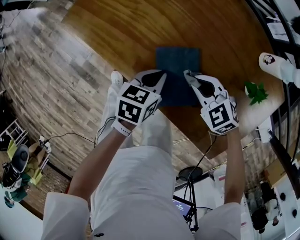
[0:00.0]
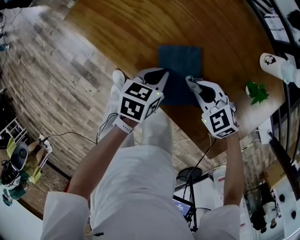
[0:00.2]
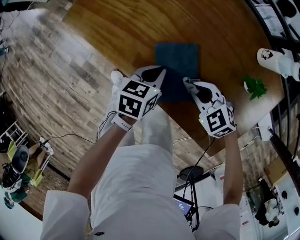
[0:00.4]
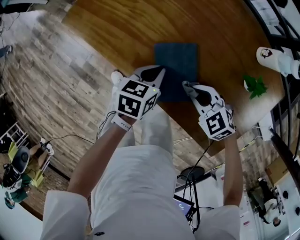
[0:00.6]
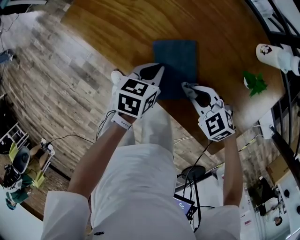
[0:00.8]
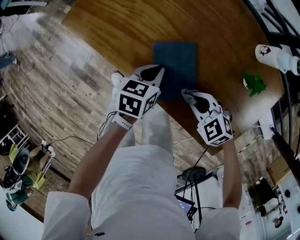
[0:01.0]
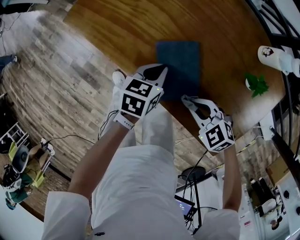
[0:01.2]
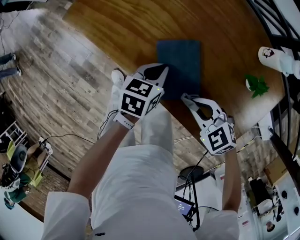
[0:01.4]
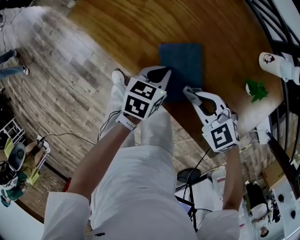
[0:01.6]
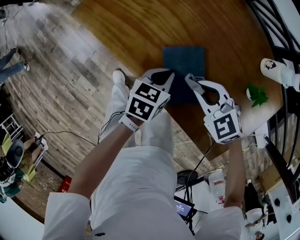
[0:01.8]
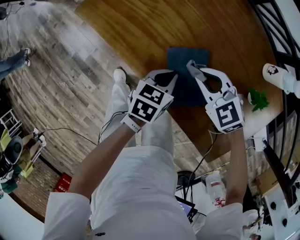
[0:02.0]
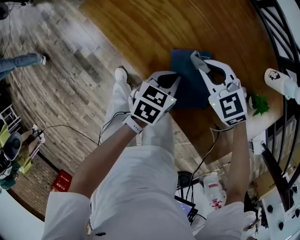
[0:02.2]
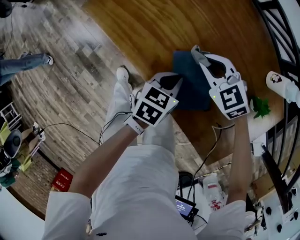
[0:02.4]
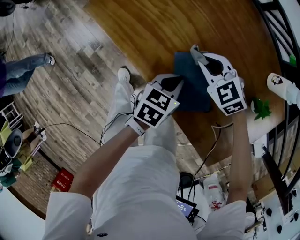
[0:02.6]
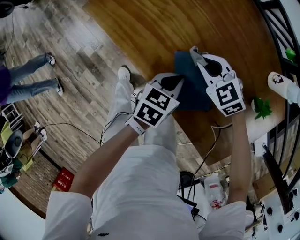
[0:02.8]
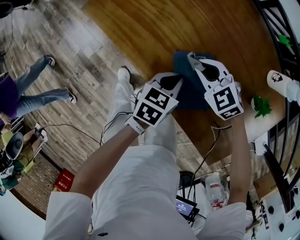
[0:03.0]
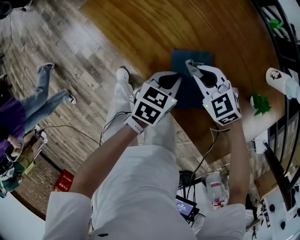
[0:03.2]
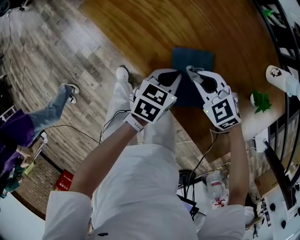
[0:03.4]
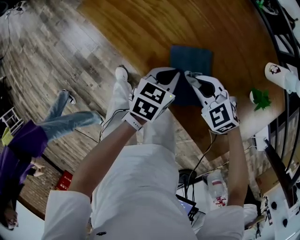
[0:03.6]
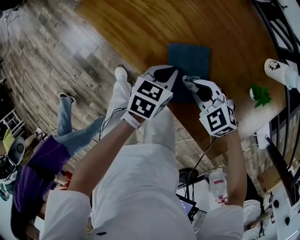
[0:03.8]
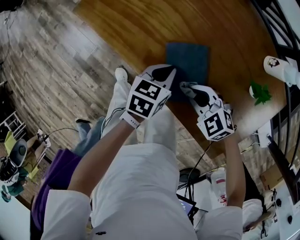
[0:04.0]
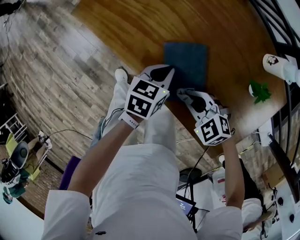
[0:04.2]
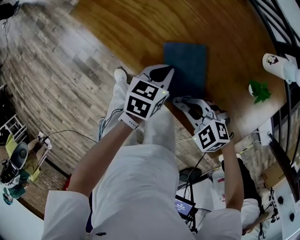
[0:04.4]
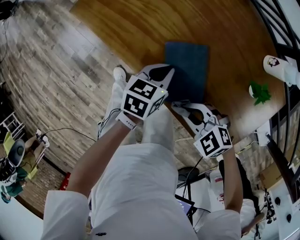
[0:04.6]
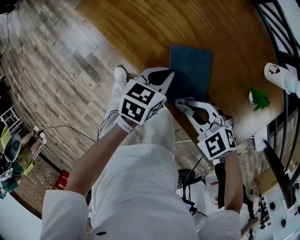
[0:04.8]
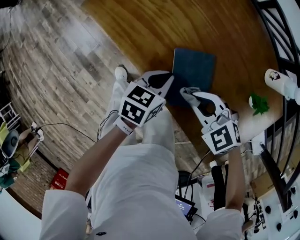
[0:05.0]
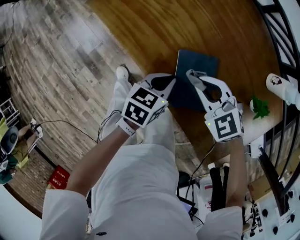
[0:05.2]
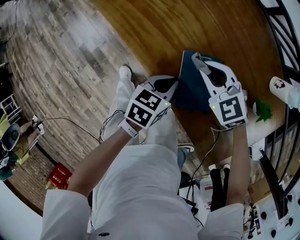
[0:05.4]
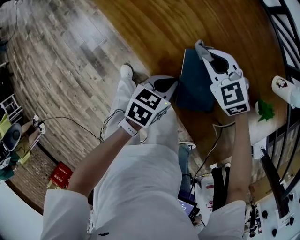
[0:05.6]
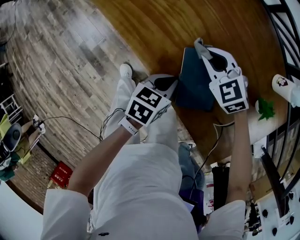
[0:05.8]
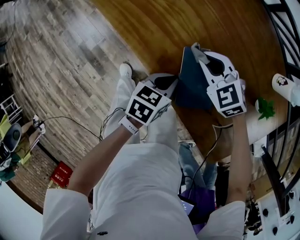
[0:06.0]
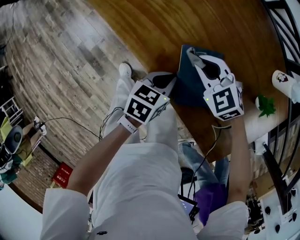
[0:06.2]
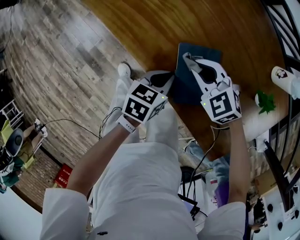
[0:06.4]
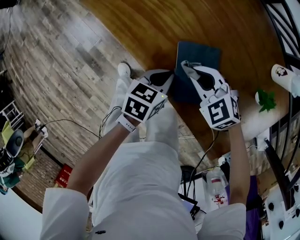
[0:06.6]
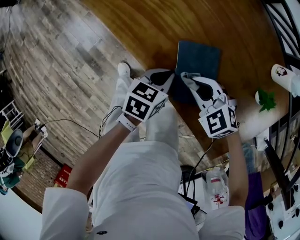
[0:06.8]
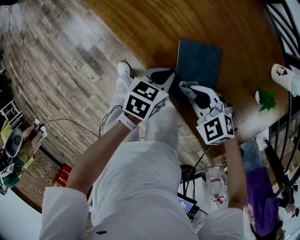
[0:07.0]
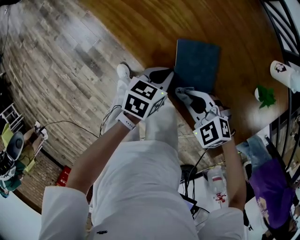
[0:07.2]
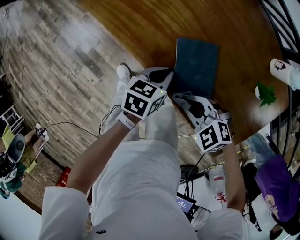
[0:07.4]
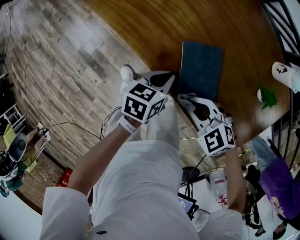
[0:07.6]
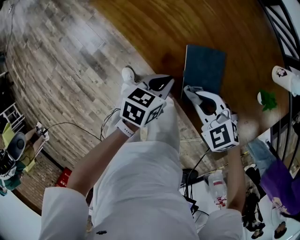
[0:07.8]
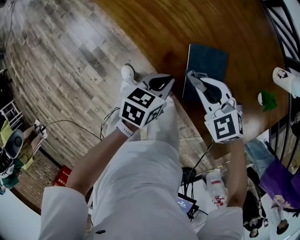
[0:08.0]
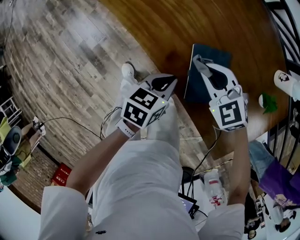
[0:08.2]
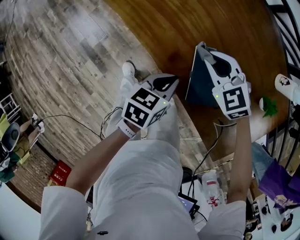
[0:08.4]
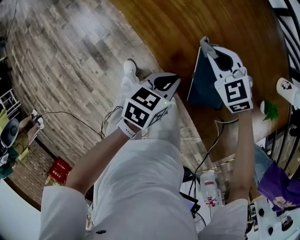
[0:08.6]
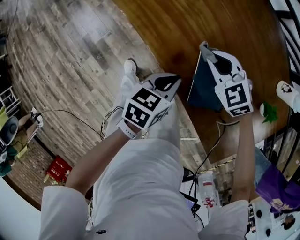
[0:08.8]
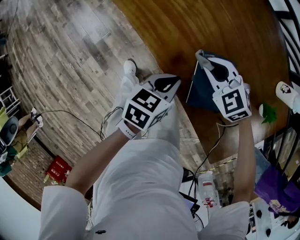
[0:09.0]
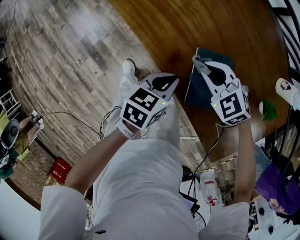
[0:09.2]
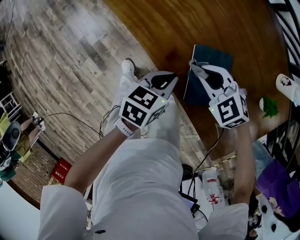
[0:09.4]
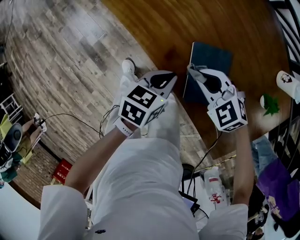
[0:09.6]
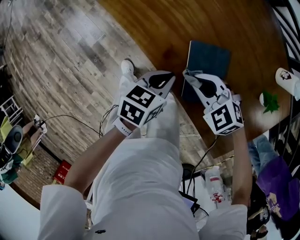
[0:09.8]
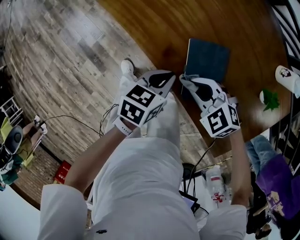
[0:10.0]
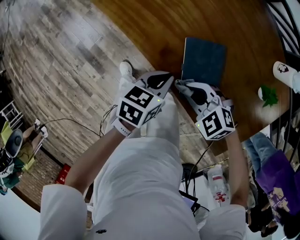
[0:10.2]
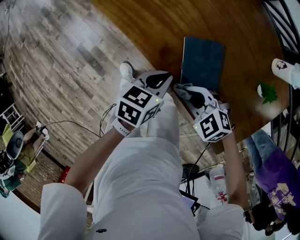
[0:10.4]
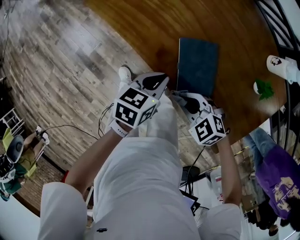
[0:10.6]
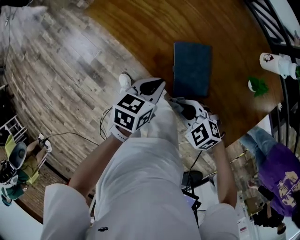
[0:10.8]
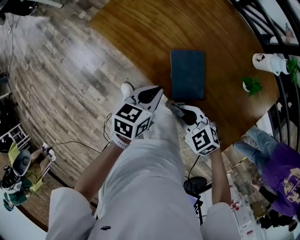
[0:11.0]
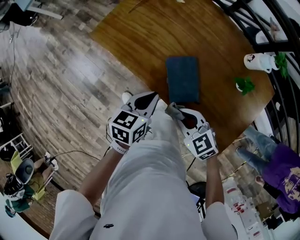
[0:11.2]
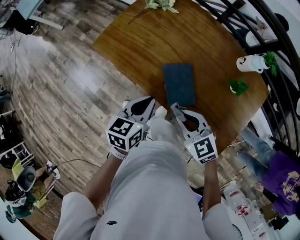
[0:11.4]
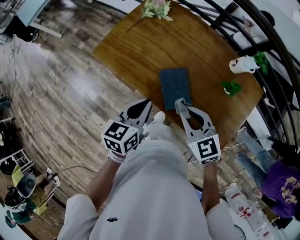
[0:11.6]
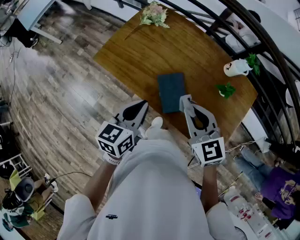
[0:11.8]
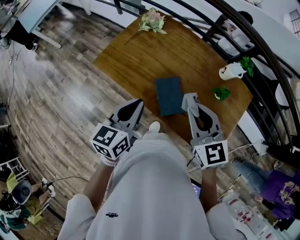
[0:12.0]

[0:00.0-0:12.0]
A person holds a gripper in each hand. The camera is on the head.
0:00.0 to 0:01.6: The right gripper travels backward by approximately 5 cm.
0:01.6 to 0:03.0: The right gripper shifts roughly 15 cm forward.
0:03.0 to 0:04.4: The right gripper moves backward, approximately 20 cm.
0:04.4 to 0:06.0: The right gripper ends up roughly 20 cm from where it was.
0:06.0 to 0:07.6: The right gripper ends up some 20 cm from where it was.
0:07.6 to 0:09.0: The right gripper is displaced forward by about 15 cm.
0:09.0 to 0:10.4: The right gripper changes place by some 15 cm.
0:10.4 to 0:12.0: The two grippers go about 25 cm upward. The left gripper rotates approximately 30 degrees. Meanwhile the right gripper tilts its fingers approximately 30 degrees upward.

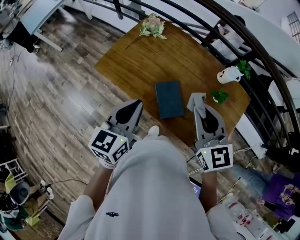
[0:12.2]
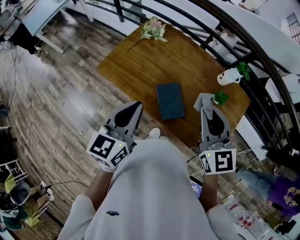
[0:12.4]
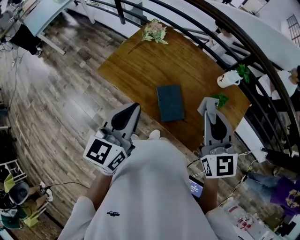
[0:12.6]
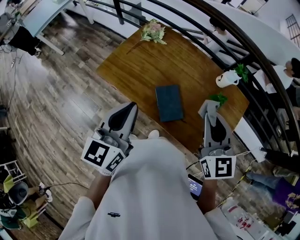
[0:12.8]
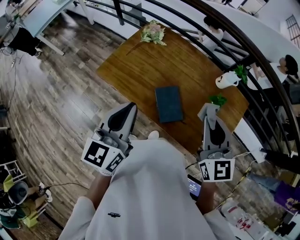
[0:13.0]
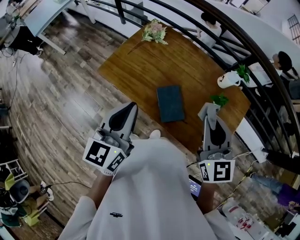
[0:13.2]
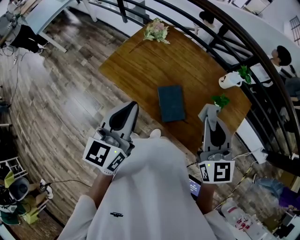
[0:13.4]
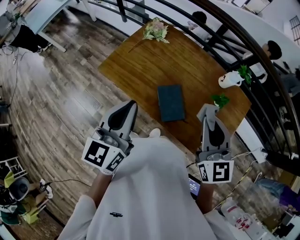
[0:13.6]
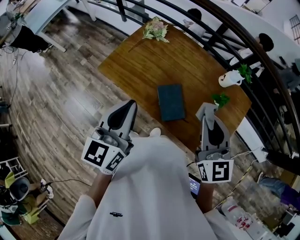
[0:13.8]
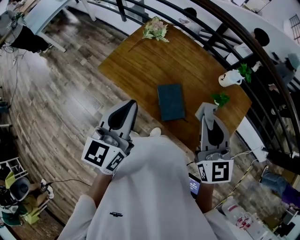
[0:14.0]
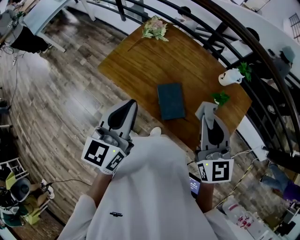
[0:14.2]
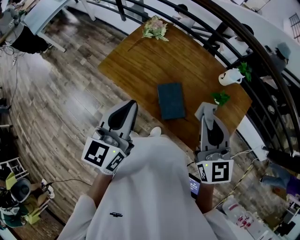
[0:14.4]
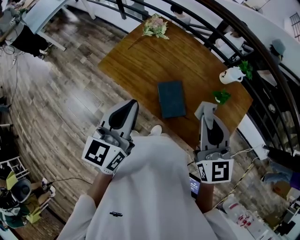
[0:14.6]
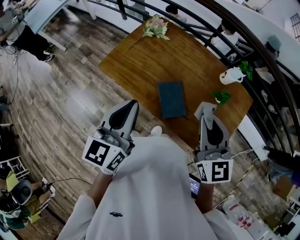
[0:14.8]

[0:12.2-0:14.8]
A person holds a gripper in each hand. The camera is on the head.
0:12.2 to 0:13.4: The left gripper moves upward, about 5 cm.
0:13.4 to 0:14.8: Both grippers stay about where they are.

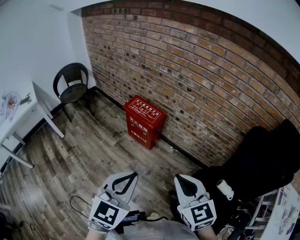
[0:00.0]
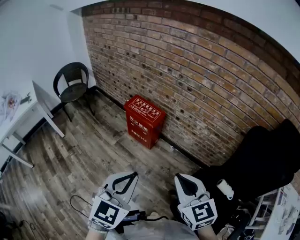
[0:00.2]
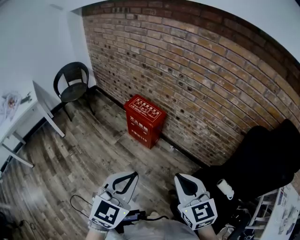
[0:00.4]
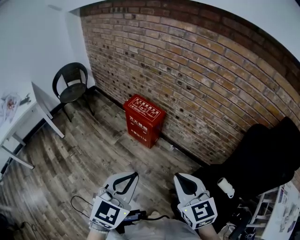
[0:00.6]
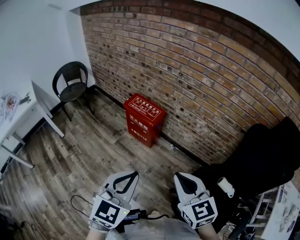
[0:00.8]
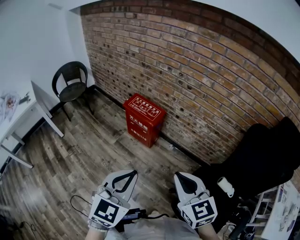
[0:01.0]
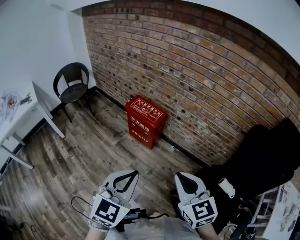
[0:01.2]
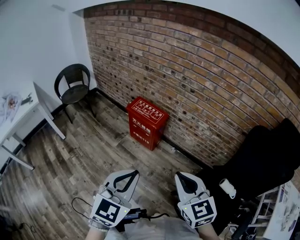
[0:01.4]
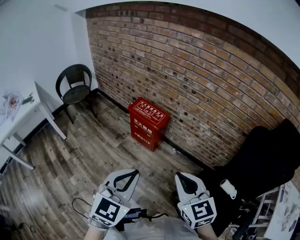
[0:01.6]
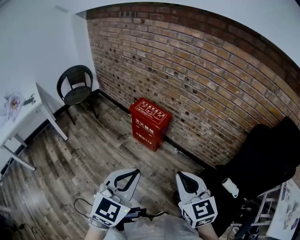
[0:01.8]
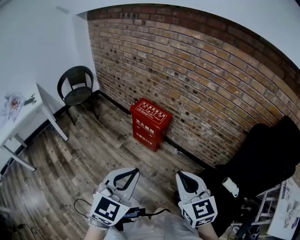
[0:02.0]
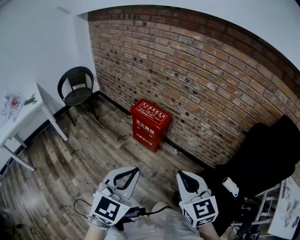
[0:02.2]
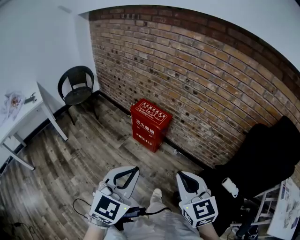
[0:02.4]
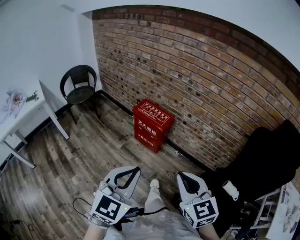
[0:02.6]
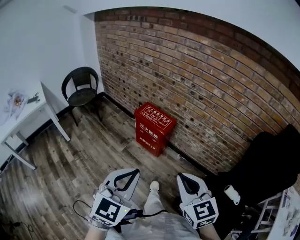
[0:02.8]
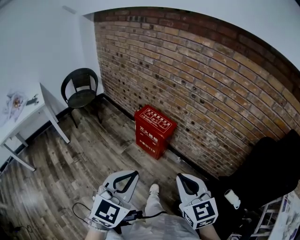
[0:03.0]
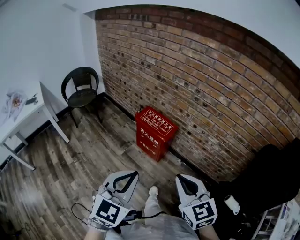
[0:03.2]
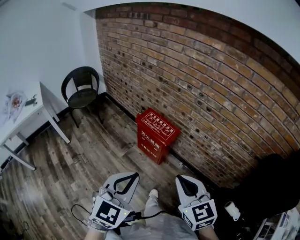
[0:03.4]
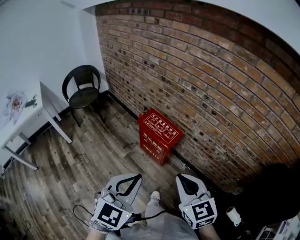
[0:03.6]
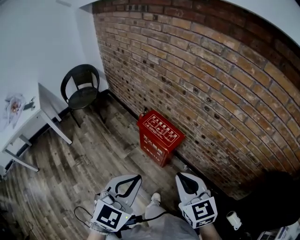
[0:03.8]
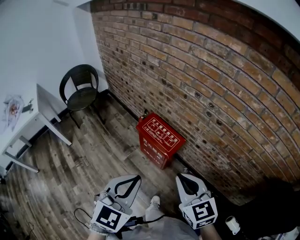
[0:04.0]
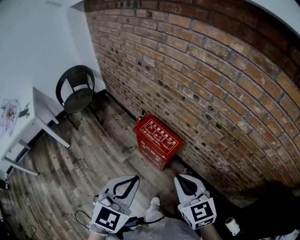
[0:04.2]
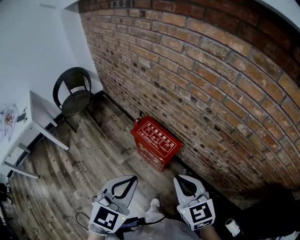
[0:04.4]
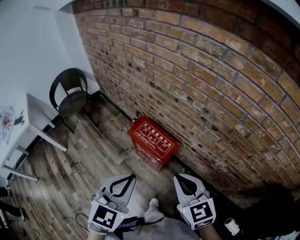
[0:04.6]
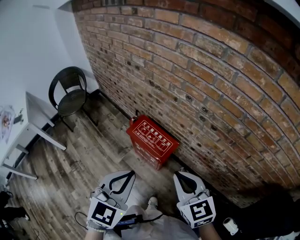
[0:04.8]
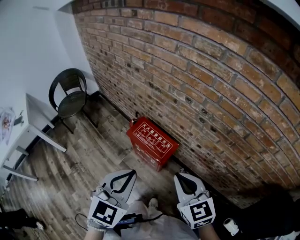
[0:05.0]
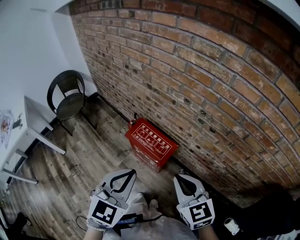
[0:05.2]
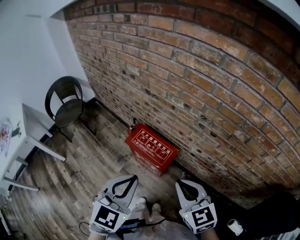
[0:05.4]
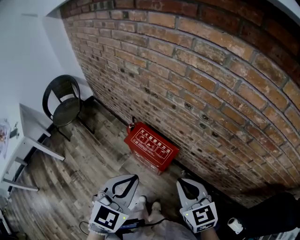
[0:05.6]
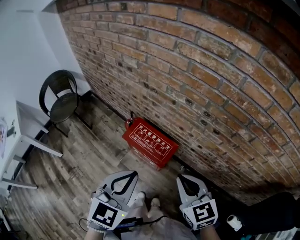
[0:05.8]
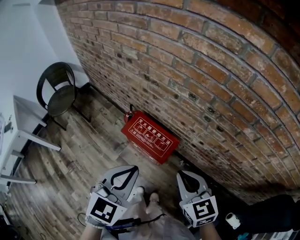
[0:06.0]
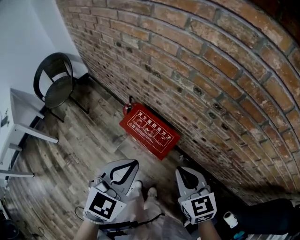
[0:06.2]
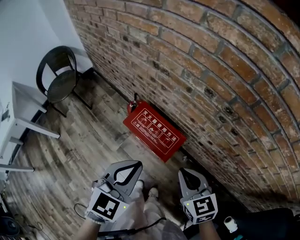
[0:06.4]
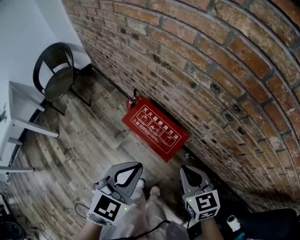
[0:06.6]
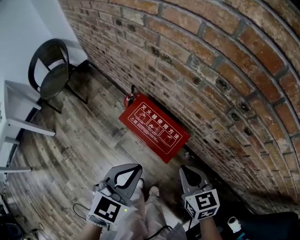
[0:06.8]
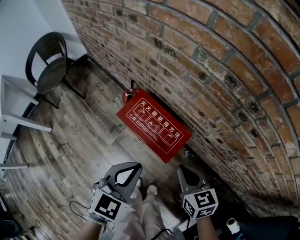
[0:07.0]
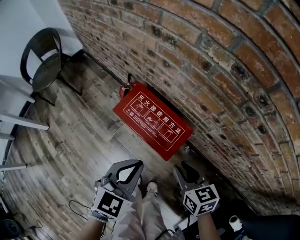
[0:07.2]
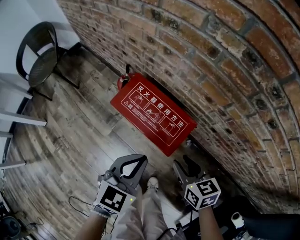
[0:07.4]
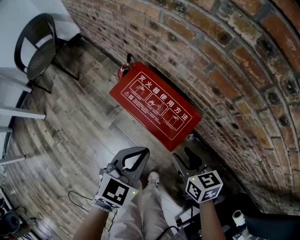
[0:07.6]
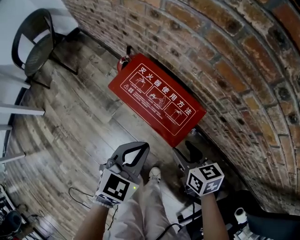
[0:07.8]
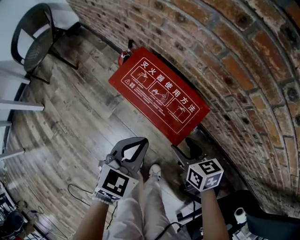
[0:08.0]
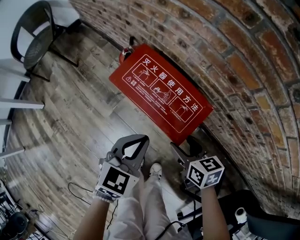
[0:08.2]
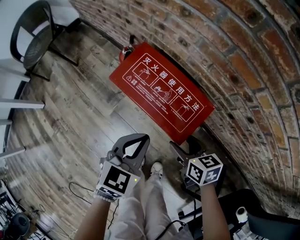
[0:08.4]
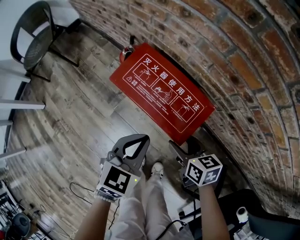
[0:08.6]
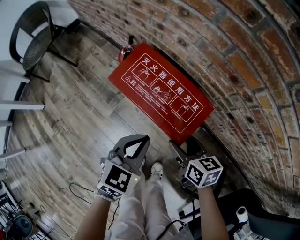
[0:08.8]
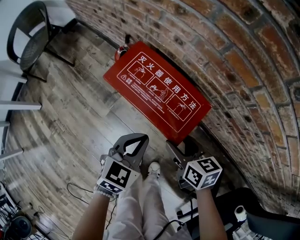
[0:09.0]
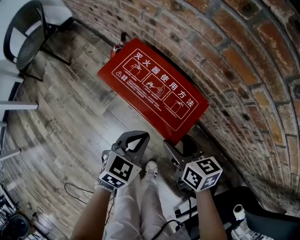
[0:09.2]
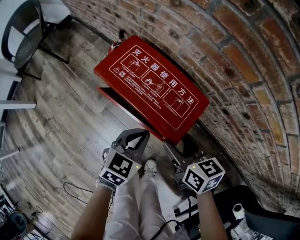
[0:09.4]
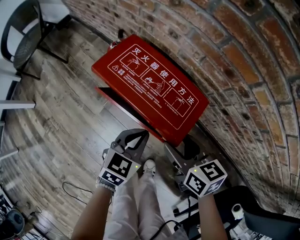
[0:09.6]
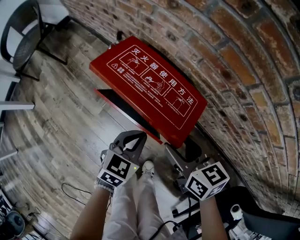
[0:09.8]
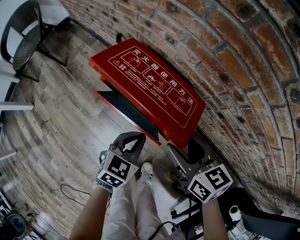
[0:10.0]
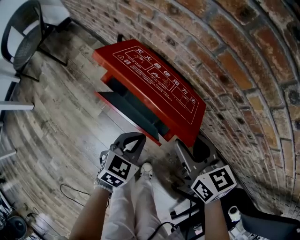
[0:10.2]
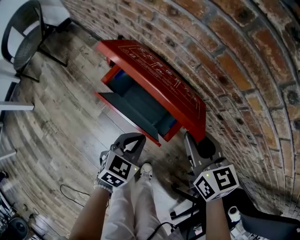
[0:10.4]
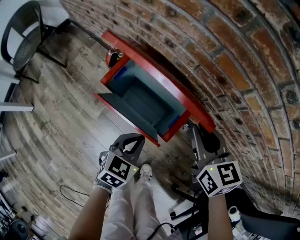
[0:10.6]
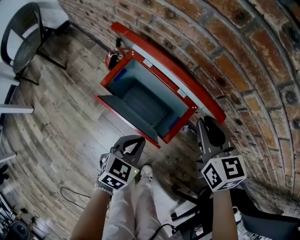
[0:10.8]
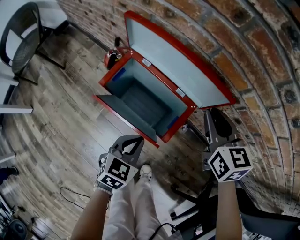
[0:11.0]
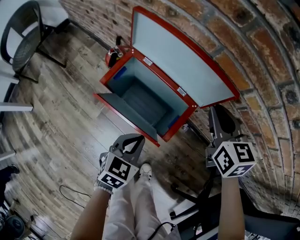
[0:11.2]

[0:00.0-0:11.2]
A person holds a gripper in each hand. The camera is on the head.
0:00.0 to 0:01.6: The grippers move only a little.
0:01.6 to 0:03.2: Both grippers move forward, roughly 5 cm.
0:03.2 to 0:04.8: The grippers both shift forward by roughly 30 cm.
0:04.8 to 0:06.4: The left gripper is displaced forward and downward by some 15 cm. The right gripper shifts about 15 cm downward and forward.
0:06.4 to 0:08.0: Both grippers travel together downward, roughly 30 cm. The right gripper rotates about 30 degrees, and opens its fingers.
0:08.0 to 0:09.6: The left gripper moves downward, some 10 cm.
0:09.6 to 0:11.2: The right gripper heads forward, to the right and upward, covering roughly 20 cm, swivels approximately 30 degrees, and closes up.
